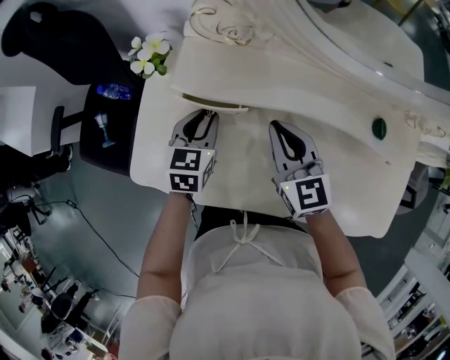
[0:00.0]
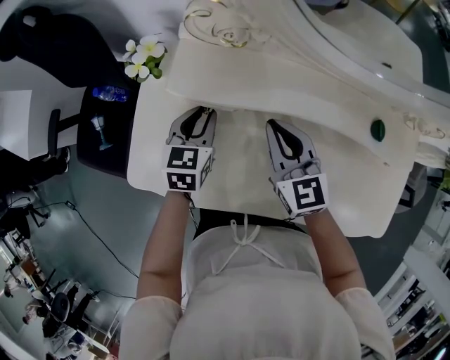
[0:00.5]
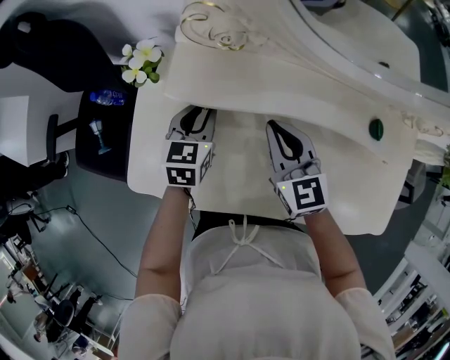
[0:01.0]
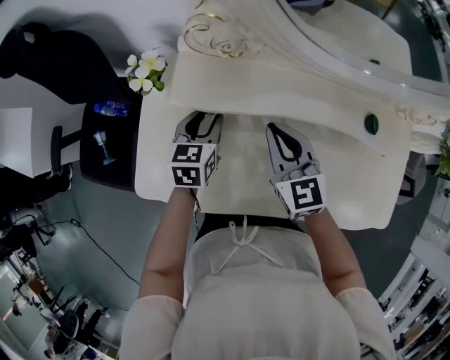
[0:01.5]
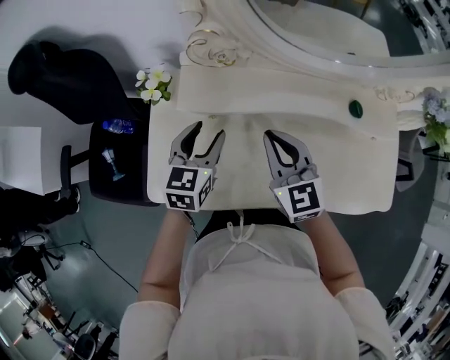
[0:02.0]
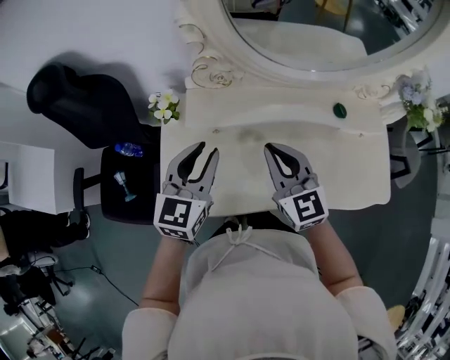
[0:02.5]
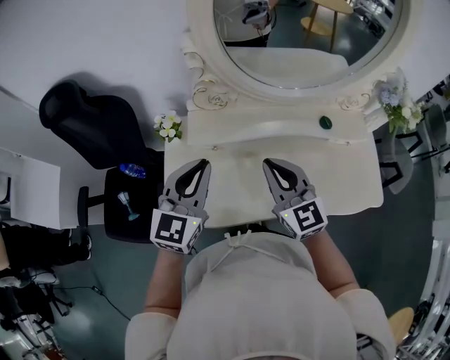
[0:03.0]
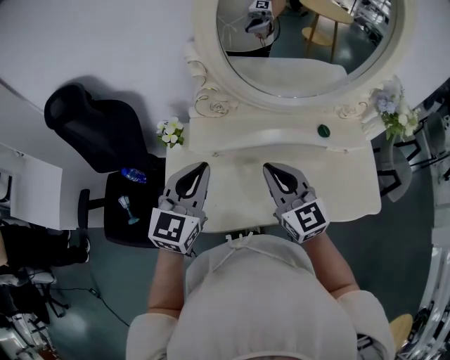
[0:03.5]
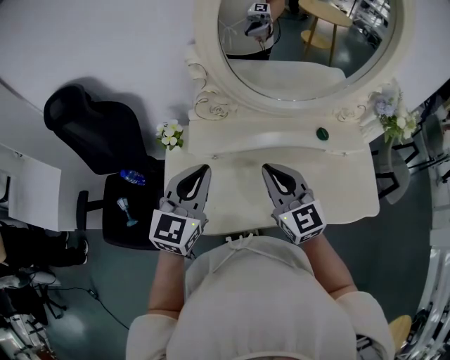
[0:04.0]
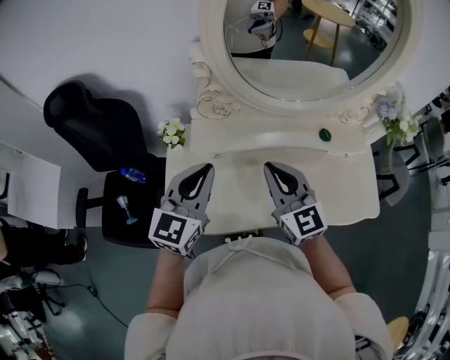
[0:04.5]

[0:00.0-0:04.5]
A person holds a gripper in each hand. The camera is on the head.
0:00.0 to 0:02.0: Both grippers travel together upward, about 10 cm. The left gripper opens its fingers.
0:02.0 to 0:04.5: The left gripper travels upward by some 20 cm, rotates roughly 30 degrees, and closes; the right gripper travels upward and backward by approximately 15 cm.

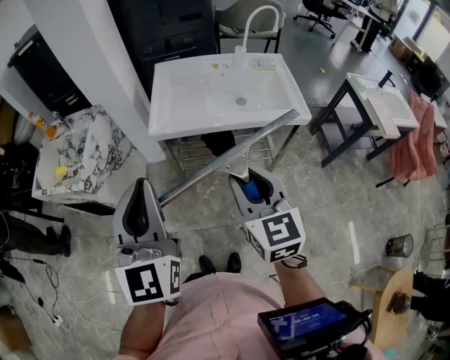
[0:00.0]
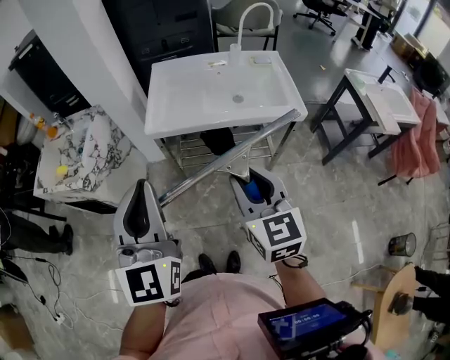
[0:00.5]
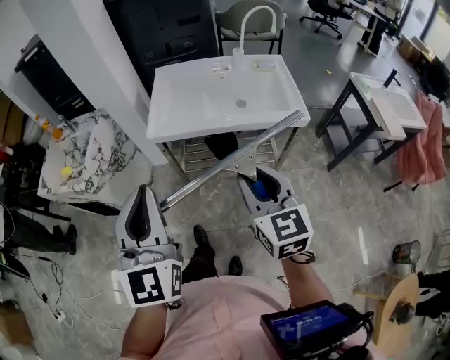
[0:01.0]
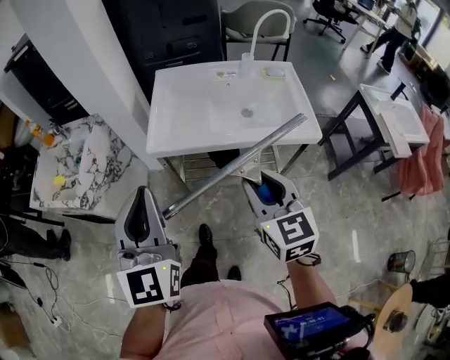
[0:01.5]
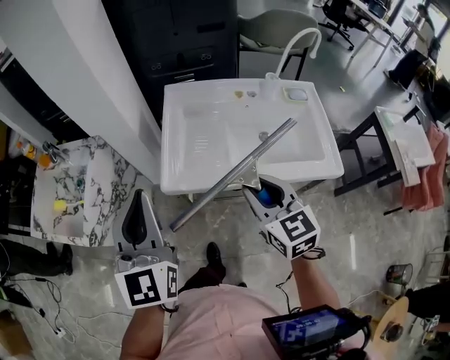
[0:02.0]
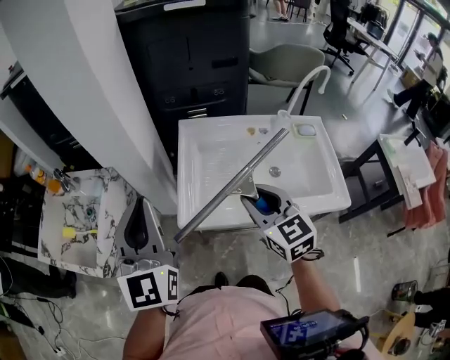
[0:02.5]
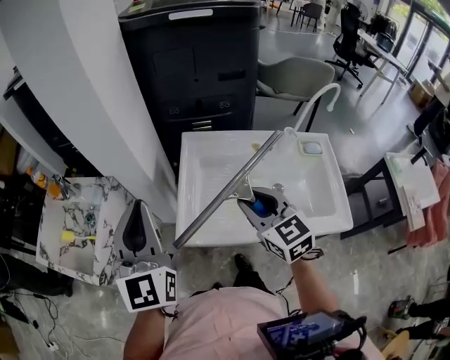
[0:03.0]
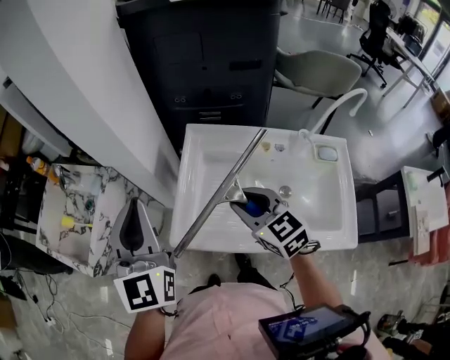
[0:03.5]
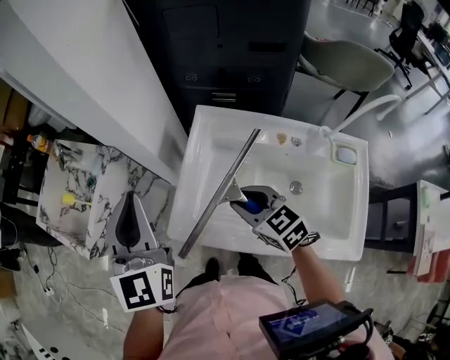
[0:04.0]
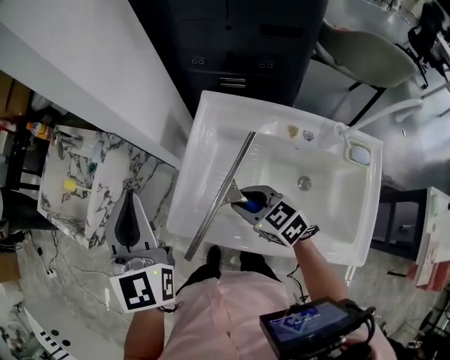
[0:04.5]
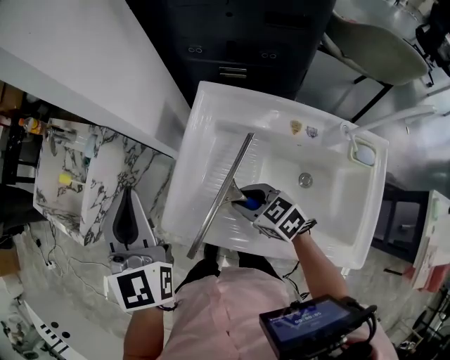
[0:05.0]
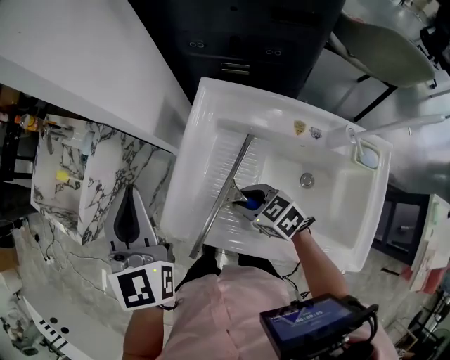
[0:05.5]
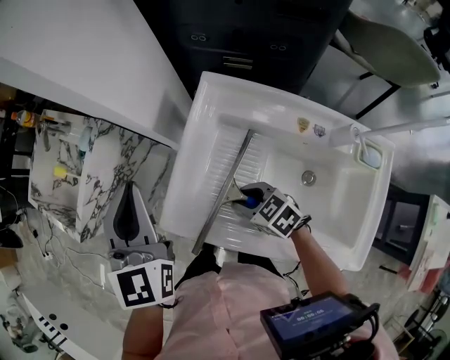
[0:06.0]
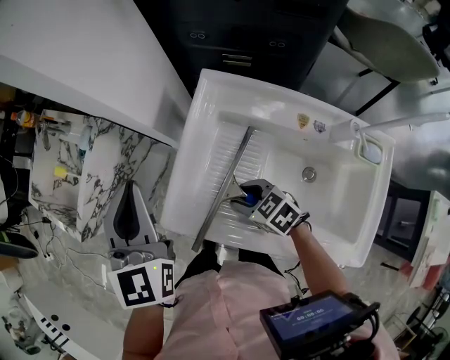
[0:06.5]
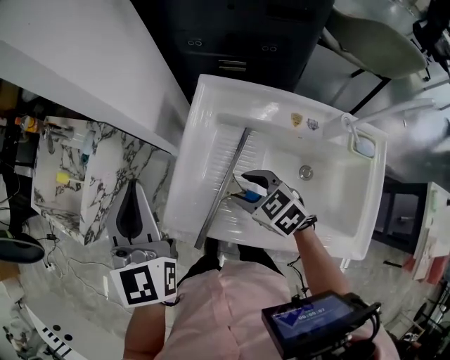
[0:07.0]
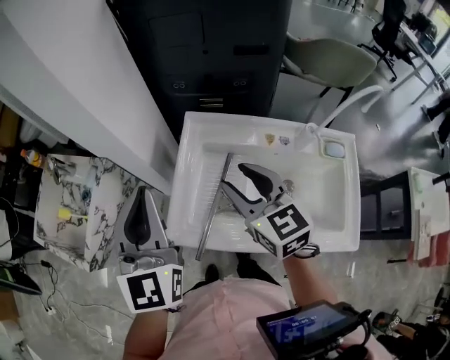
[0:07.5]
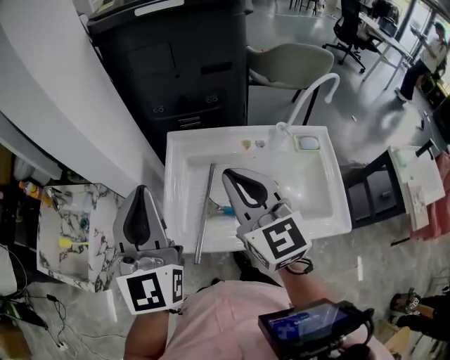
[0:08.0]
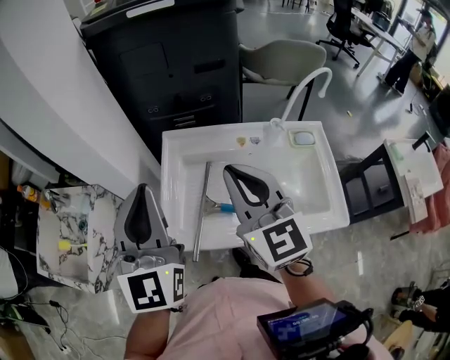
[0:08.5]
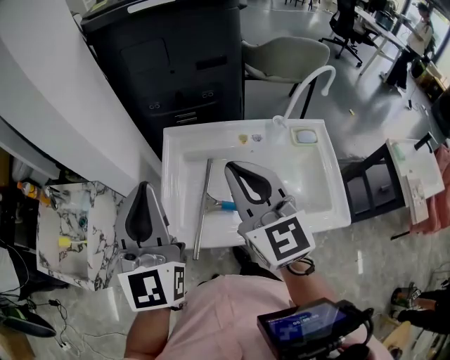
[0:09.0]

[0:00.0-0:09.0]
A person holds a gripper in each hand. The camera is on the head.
0:00.0 to 0:02.0: The grippers both shift forward by approximately 25 cm.
0:02.0 to 0:04.5: The left gripper ends up about 20 cm from where it was, and changes its angle by roughly 20 degrees. The right gripper changes place by about 25 cm, and rotates about 50 degrees.
0:04.5 to 0:07.0: The right gripper reaches roughly 10 cm downward, then returns, and opens its fingers.
0:07.0 to 0:09.0: The left gripper goes approximately 10 cm upward, and swivels roughly 30 degrees. The right gripper moves upward, approximately 30 cm, points its fingers about 40 degrees further upward, and closes up.

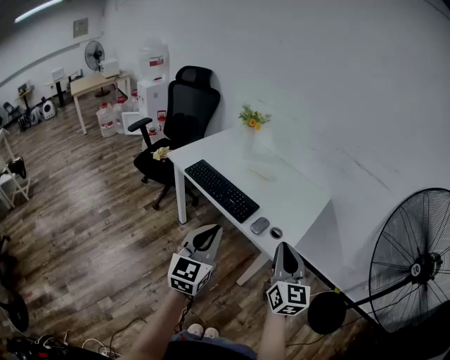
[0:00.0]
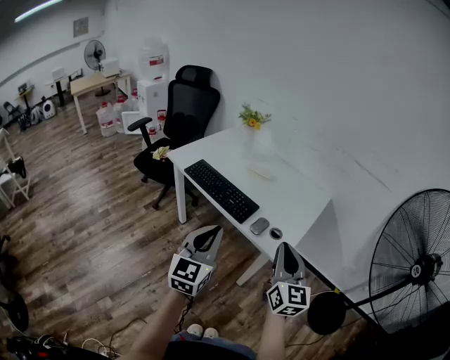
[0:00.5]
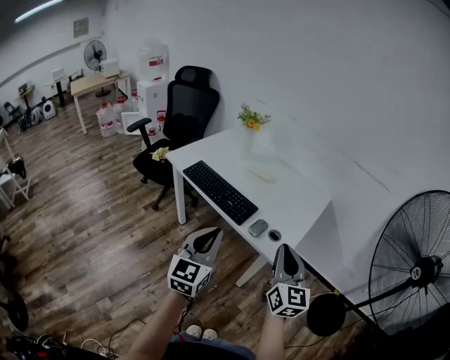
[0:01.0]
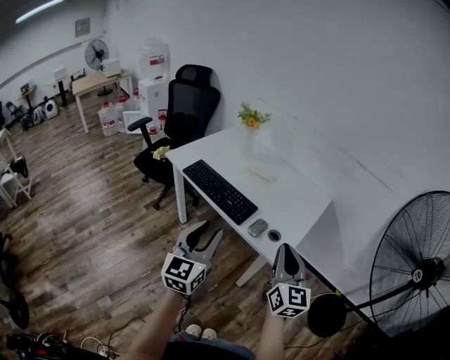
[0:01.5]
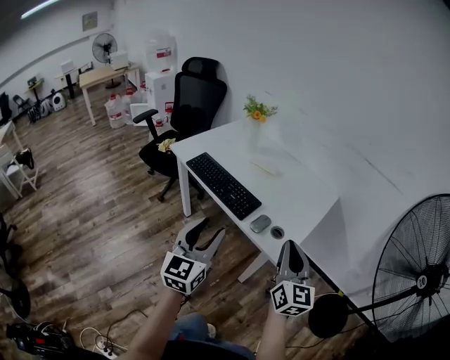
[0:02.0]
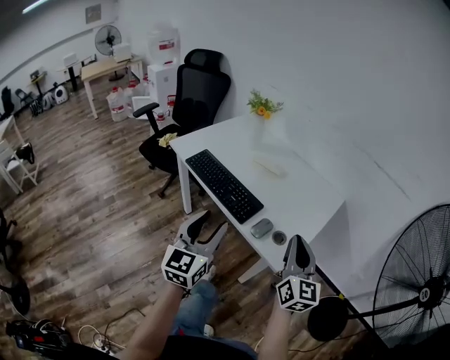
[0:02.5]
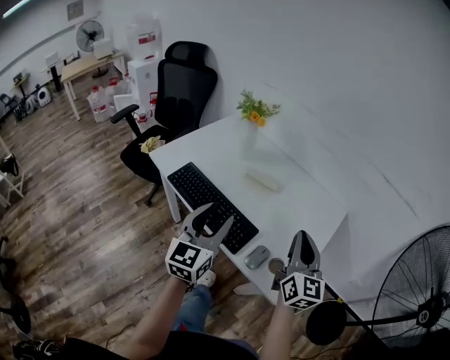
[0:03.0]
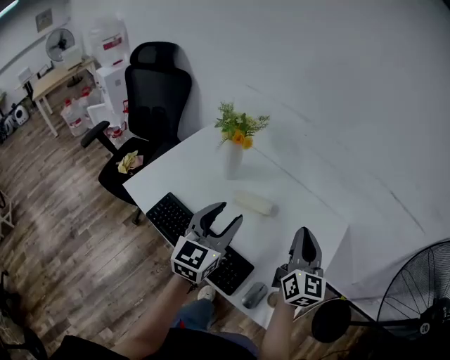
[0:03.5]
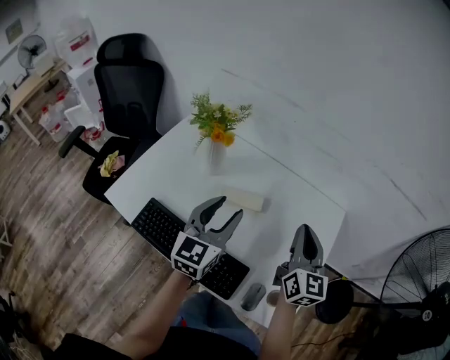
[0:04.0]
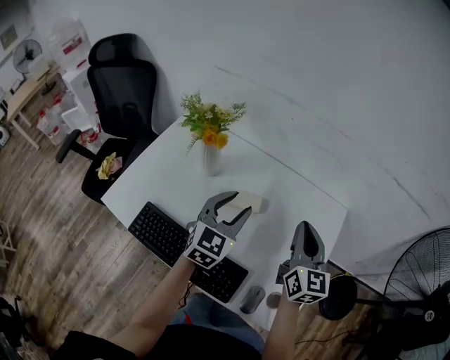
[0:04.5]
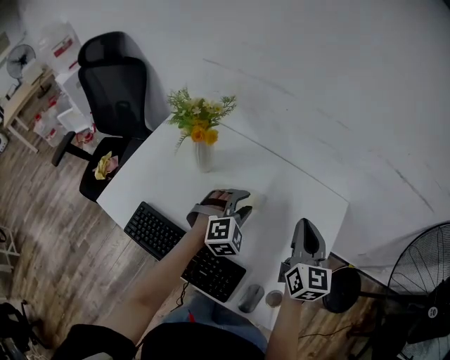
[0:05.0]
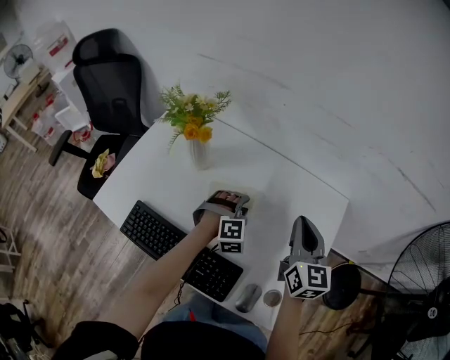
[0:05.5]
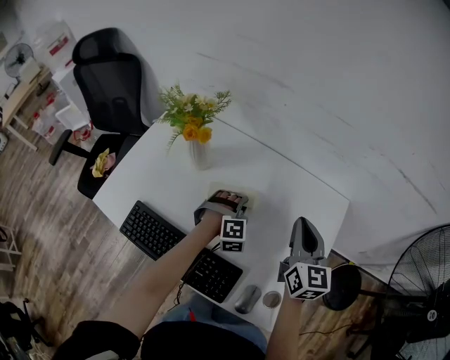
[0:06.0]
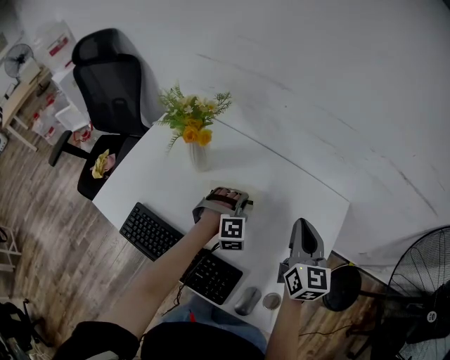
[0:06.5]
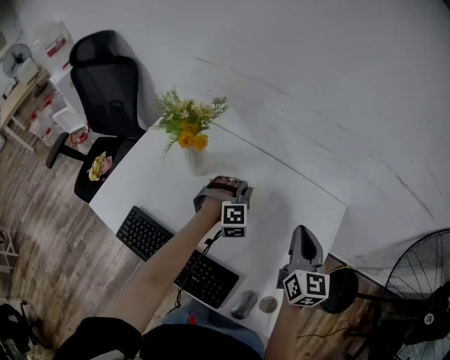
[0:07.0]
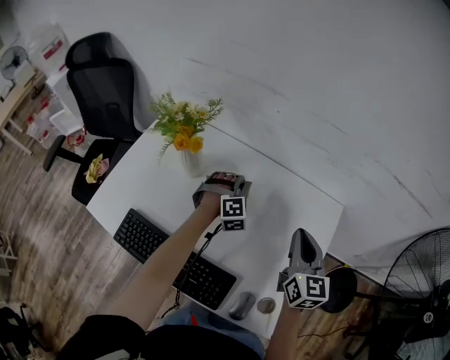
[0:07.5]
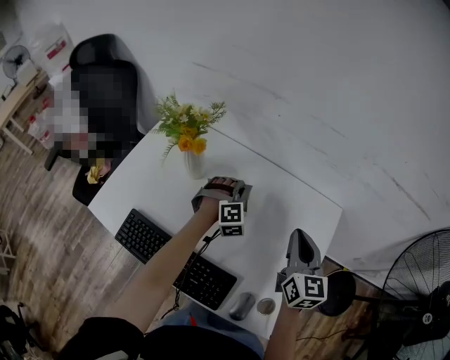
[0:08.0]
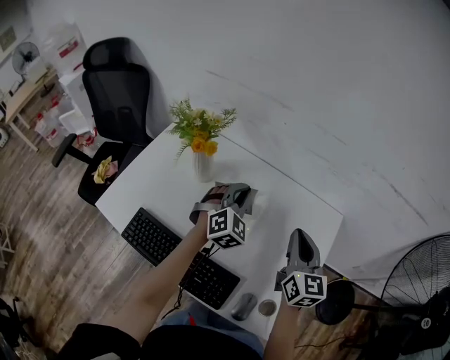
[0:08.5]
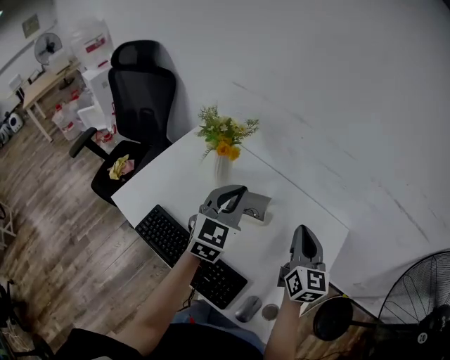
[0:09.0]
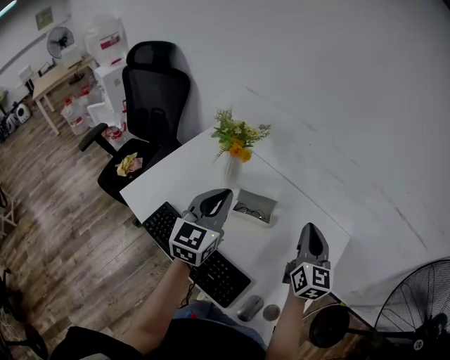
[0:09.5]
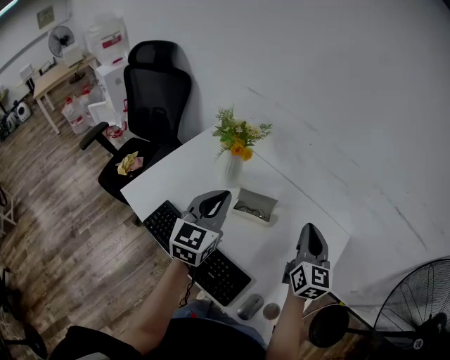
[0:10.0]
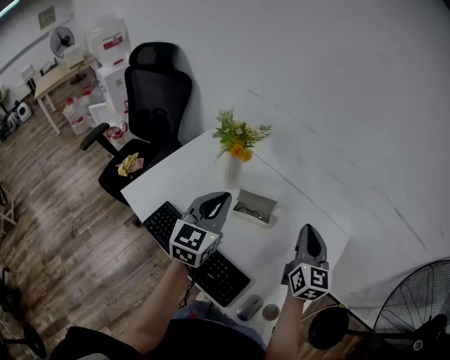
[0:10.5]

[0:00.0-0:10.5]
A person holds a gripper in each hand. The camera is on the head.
0:00.0 to 0:02.0: The right gripper shifts by some 5 cm, while the left gripper opens.
0:02.0 to 0:04.0: The pair of grippers is taken forward, some 50 cm. The left gripper changes its angle by approximately 20 degrees.
0:04.0 to 0:06.5: The left gripper heads downward and forward, covering about 25 cm, twists about 70 degrees clockwise, seen from behind, and closes its fingers. The right gripper is displaced forward and downward by some 5 cm.
0:06.5 to 0:08.5: The left gripper shifts some 10 cm upward, and swivels about 30 degrees.
0:08.5 to 0:10.5: The left gripper shifts roughly 20 cm to the left, upward and backward, and twists roughly 40 degrees counterclockwise, seen from behind; the right gripper changes place by about 5 cm.

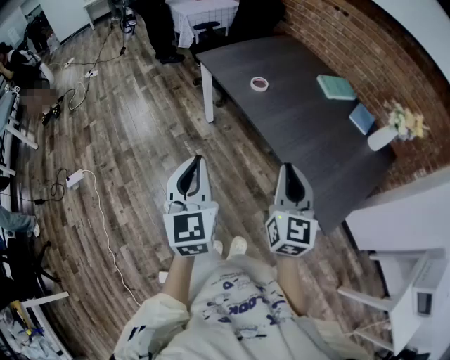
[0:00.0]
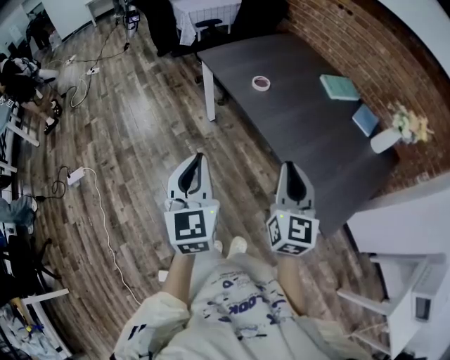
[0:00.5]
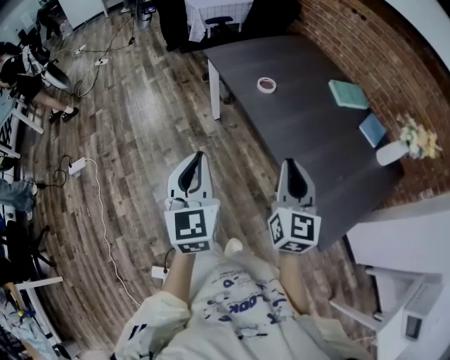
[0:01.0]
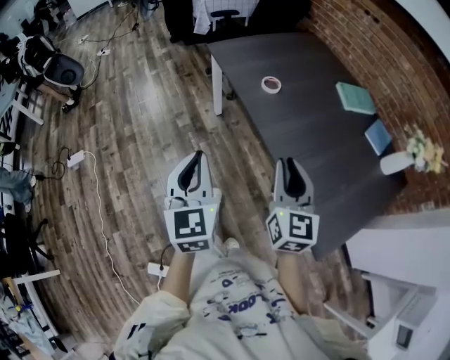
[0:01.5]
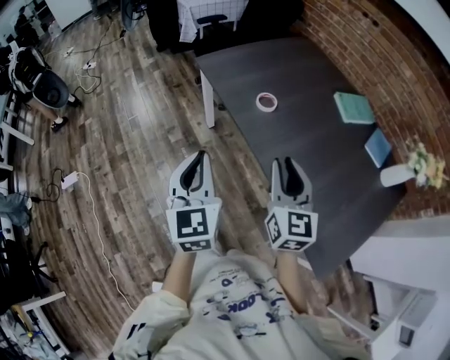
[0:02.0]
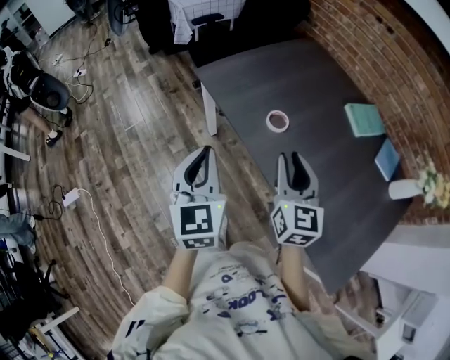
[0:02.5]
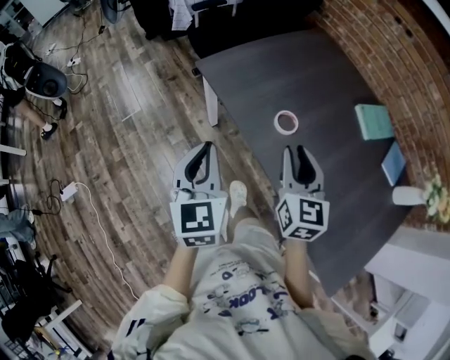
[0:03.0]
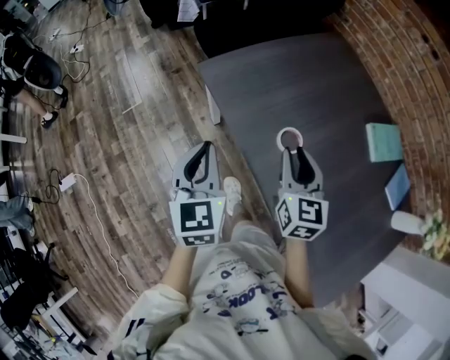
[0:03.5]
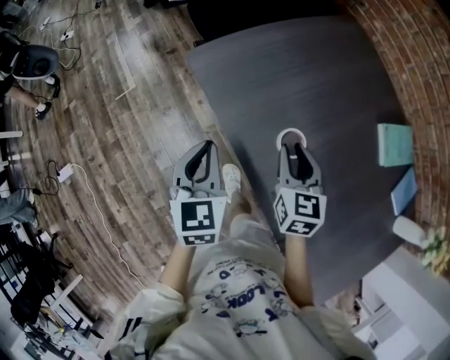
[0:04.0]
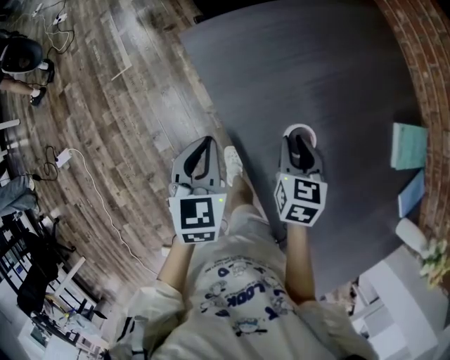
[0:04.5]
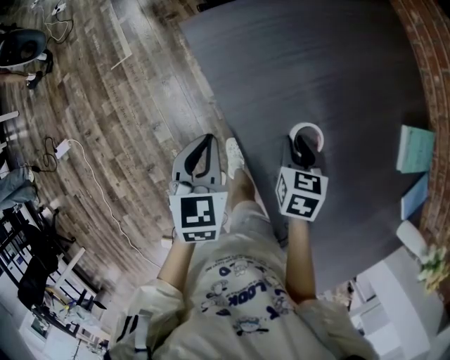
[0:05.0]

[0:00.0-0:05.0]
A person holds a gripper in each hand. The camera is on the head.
0:00.0 to 0:02.5: The two grippers go roughly 35 cm forward.
0:02.5 to 0:05.0: The left gripper is displaced forward and downward by roughly 25 cm, and turns by roughly 30 degrees, while the right gripper is displaced downward and forward by about 30 cm, and angles its fingers downward, by approximately 40 degrees.
